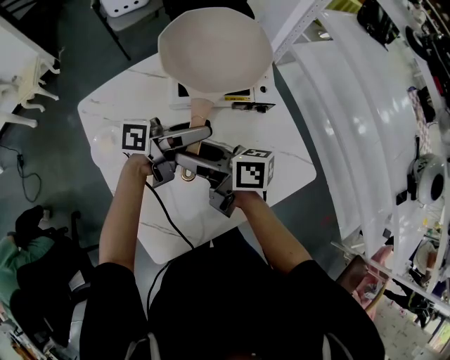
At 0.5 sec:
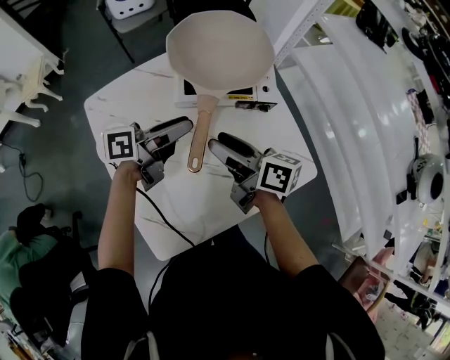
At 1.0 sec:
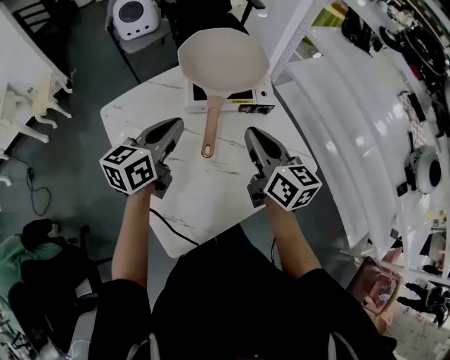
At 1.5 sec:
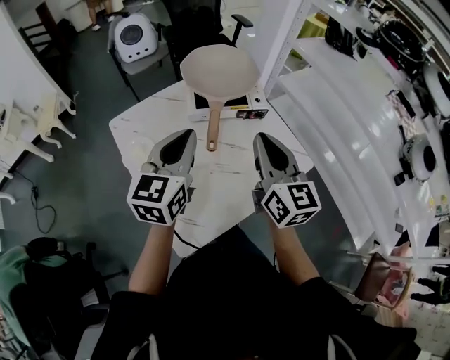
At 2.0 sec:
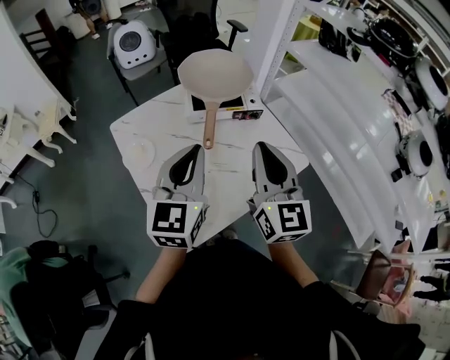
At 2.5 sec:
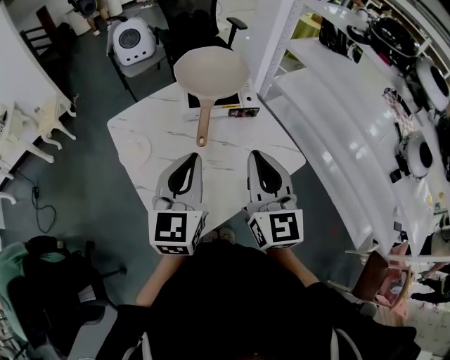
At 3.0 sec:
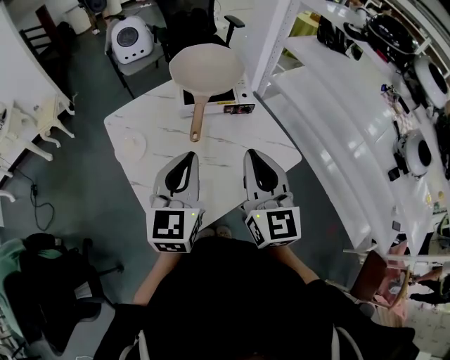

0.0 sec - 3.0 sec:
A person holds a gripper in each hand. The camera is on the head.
0.0 sec - 1.5 sec: The right gripper moves upward, approximately 15 cm, changes its angle by approximately 70 degrees, and closes its fingers. Meanwhile the left gripper shifts by approximately 20 cm, changes its angle by approximately 80 degrees, and closes up.
1.5 sec - 3.0 sec: The right gripper goes about 10 cm backward, while the left gripper goes about 10 cm backward and to the right.

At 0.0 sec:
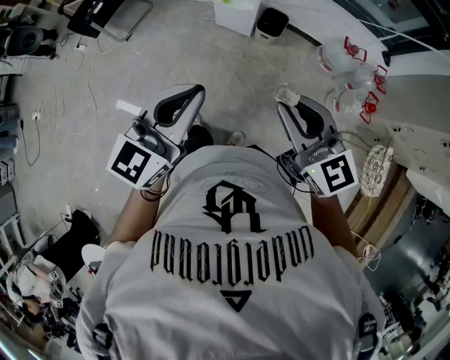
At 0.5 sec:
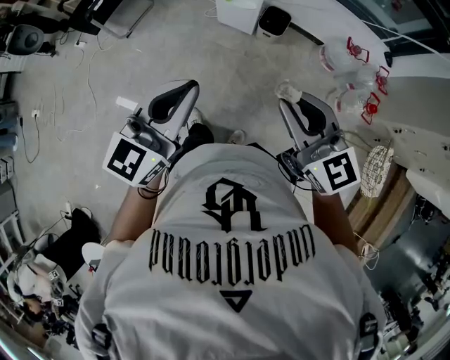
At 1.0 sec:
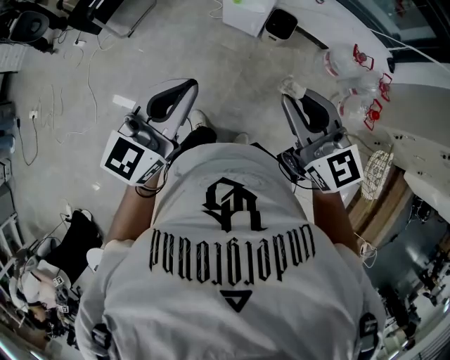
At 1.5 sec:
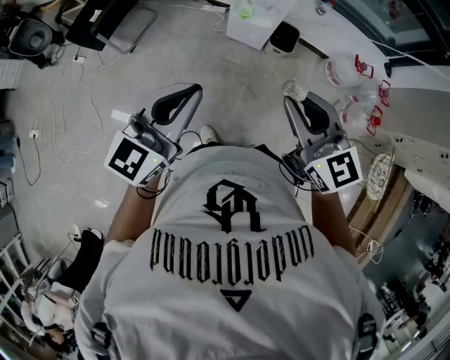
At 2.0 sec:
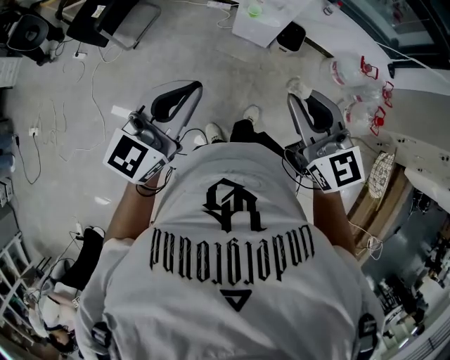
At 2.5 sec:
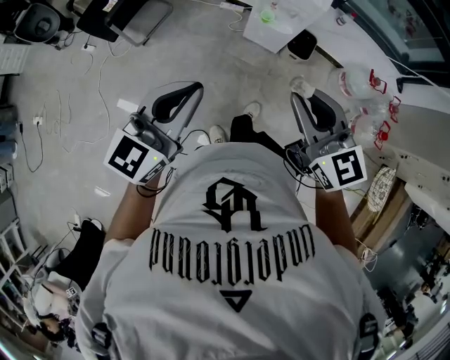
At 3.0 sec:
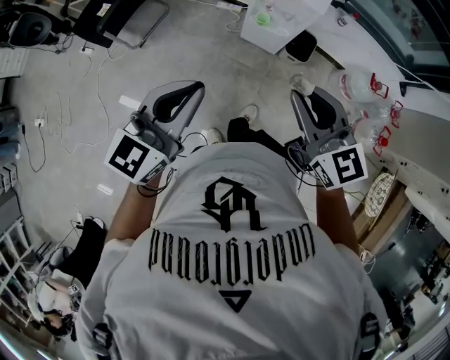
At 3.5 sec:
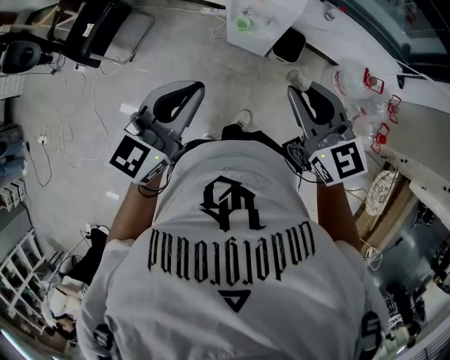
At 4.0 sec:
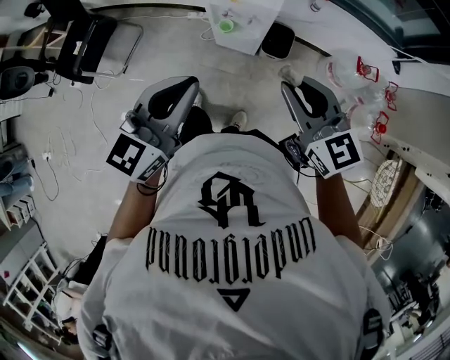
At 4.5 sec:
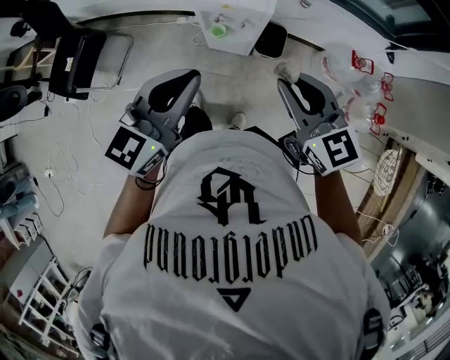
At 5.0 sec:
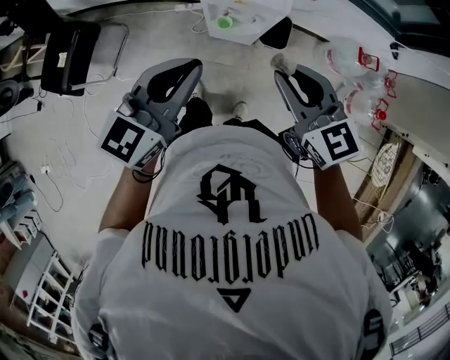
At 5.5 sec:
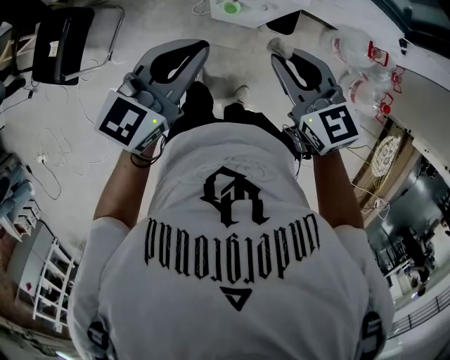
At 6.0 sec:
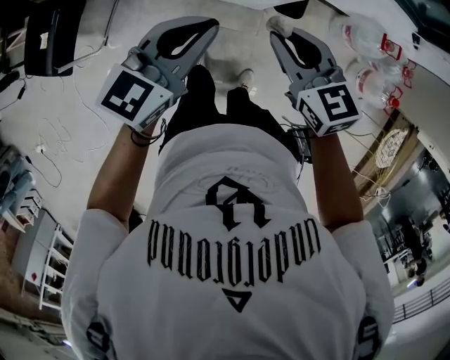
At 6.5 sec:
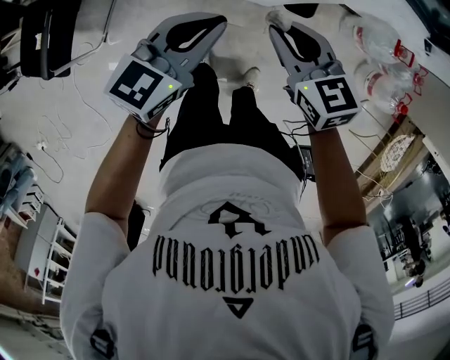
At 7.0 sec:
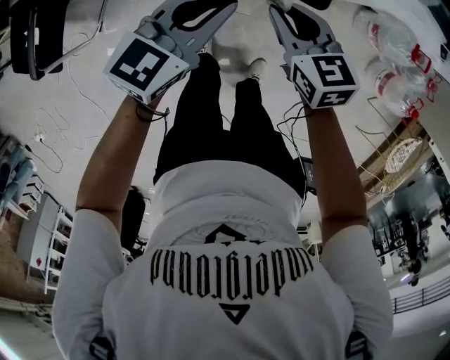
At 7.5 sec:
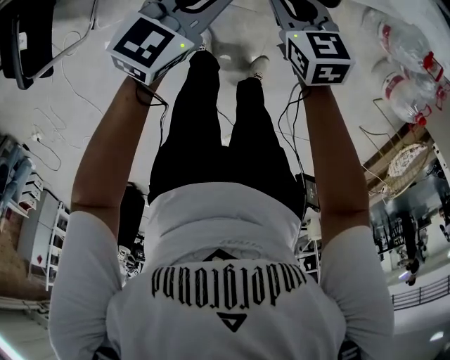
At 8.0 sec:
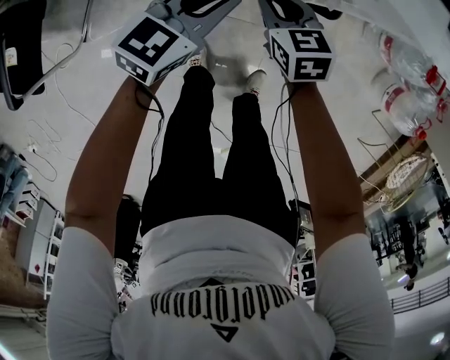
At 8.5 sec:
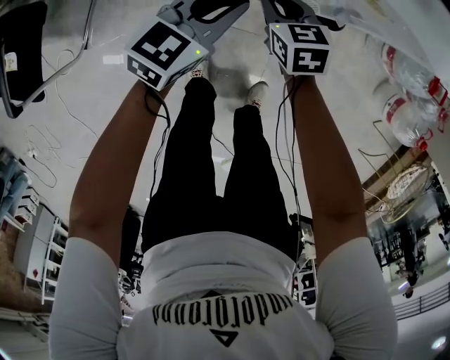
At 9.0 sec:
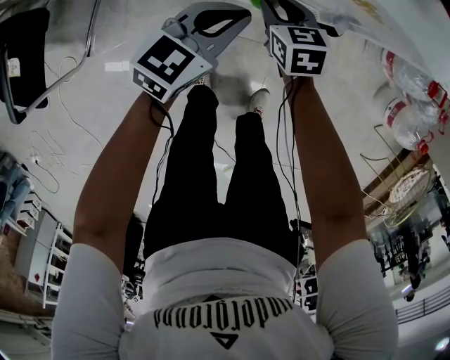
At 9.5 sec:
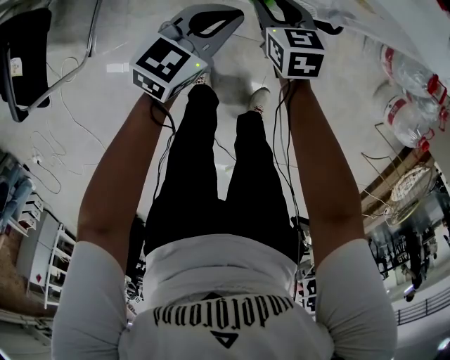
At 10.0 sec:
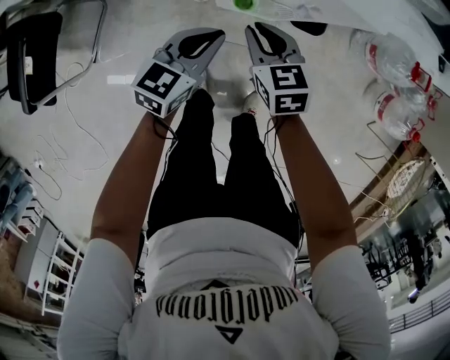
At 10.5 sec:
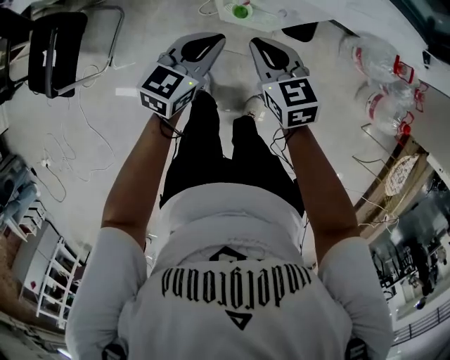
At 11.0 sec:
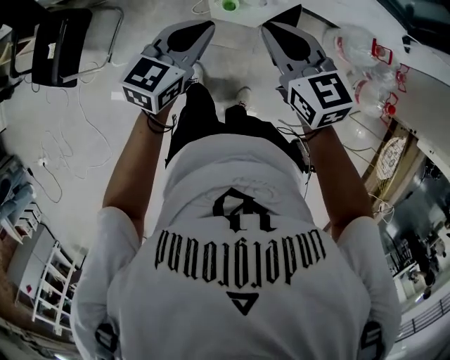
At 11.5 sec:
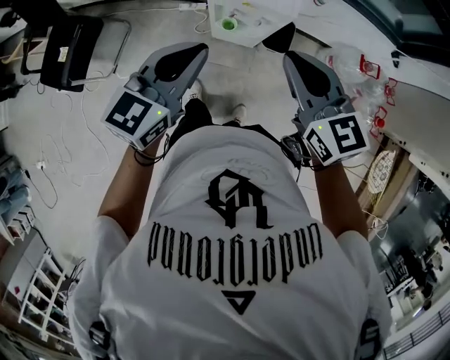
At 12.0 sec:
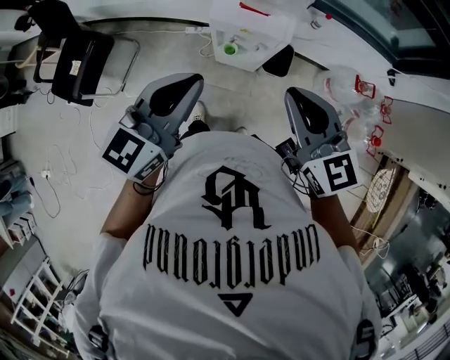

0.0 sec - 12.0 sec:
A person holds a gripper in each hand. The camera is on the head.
0.0 sec - 2.0 sec: Both grippers travel together to the left and forward, approximately 25 cm.
2.0 sec - 4.0 sec: The grippers both shift forward and to the right by roughly 25 cm.
4.0 sec - 6.0 sec: The grippers both shift forward, downward and to the left by about 25 cm.
6.0 sec - 8.0 sec: Both grippers move downward, approximately 35 cm.
8.0 sec - 10.0 sec: The right gripper is displaced upward by about 5 cm.
10.0 sec - 12.0 sec: The grippers both shift upward by about 50 cm. The right gripper changes its angle by some 30 degrees, while the left gripper changes its angle by some 20 degrees.

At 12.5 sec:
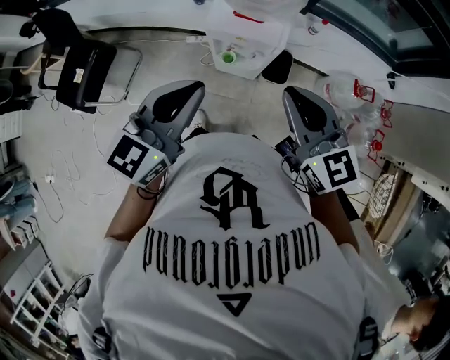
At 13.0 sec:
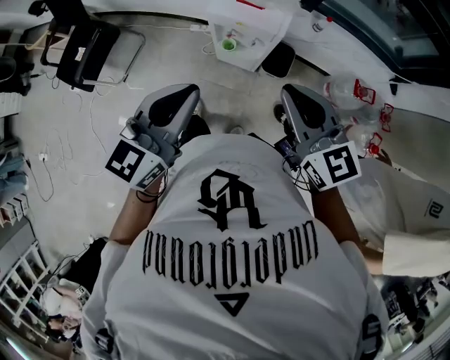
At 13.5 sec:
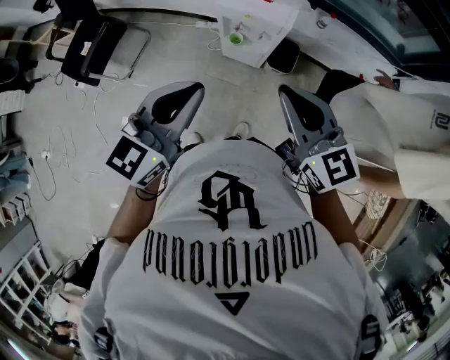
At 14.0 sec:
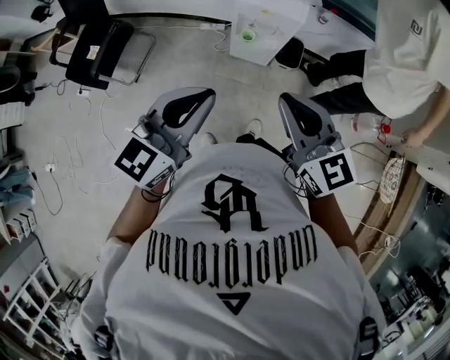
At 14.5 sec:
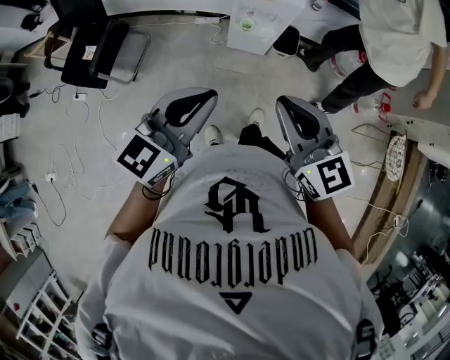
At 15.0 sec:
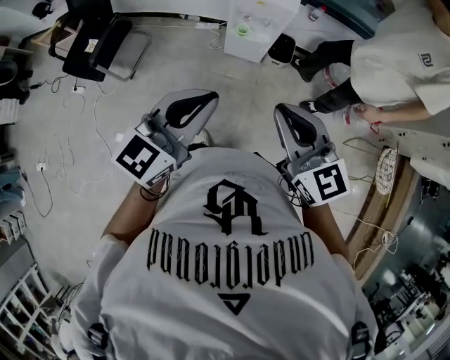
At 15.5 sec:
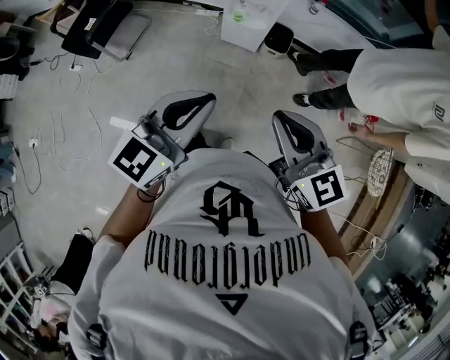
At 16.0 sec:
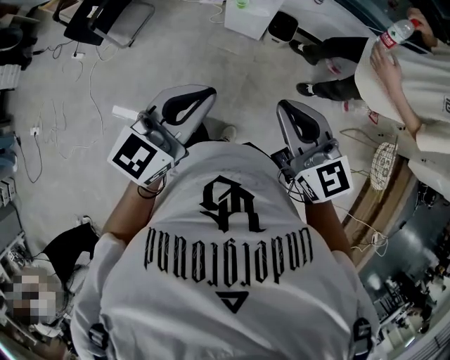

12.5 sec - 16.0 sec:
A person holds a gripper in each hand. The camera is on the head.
12.5 sec - 14.5 sec: Both grippers move backward and to the left, approximately 30 cm.
14.5 sec - 16.0 sec: The right gripper heads to the right and backward, covering approximately 20 cm; the left gripper moves backward and to the right, about 20 cm.

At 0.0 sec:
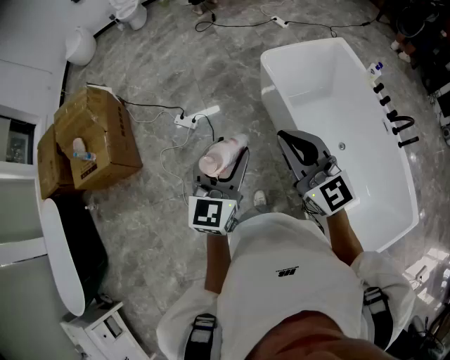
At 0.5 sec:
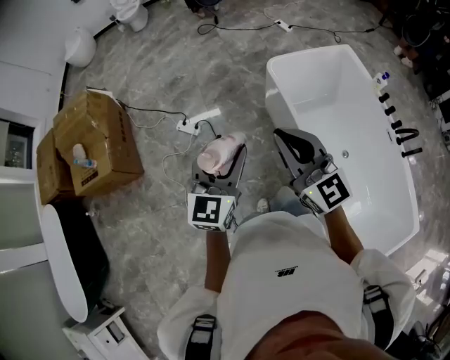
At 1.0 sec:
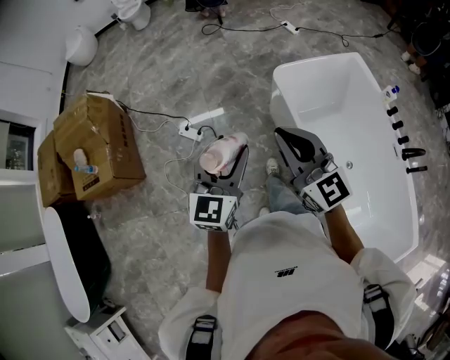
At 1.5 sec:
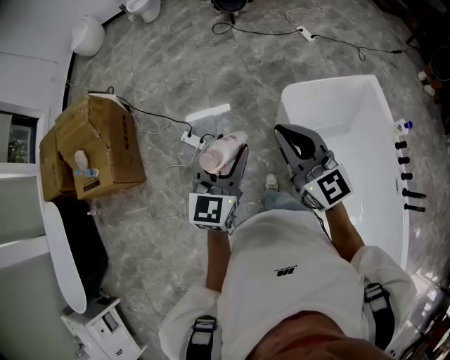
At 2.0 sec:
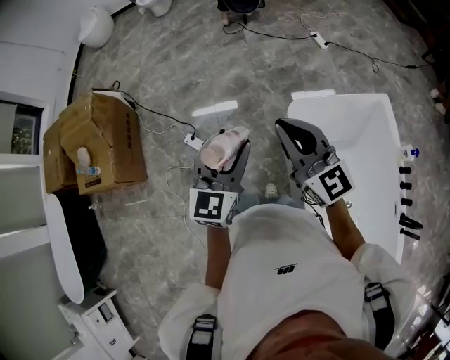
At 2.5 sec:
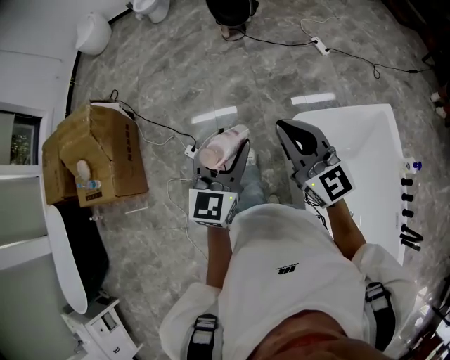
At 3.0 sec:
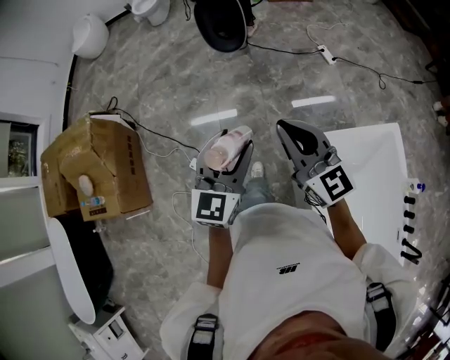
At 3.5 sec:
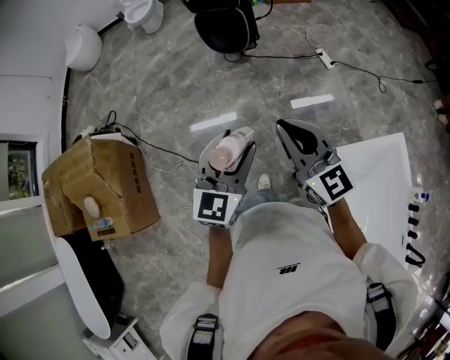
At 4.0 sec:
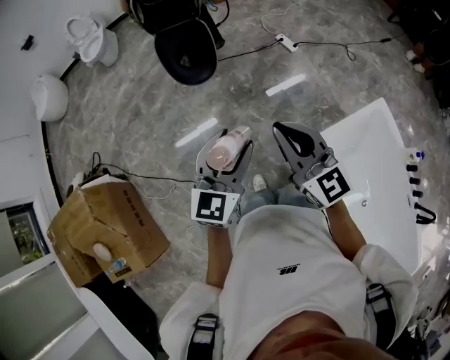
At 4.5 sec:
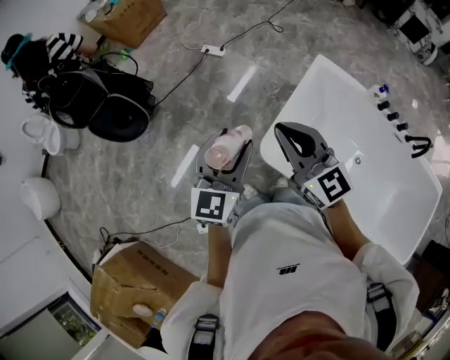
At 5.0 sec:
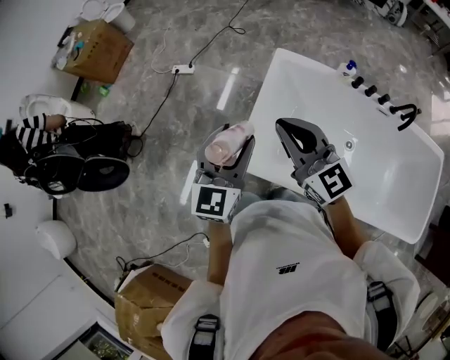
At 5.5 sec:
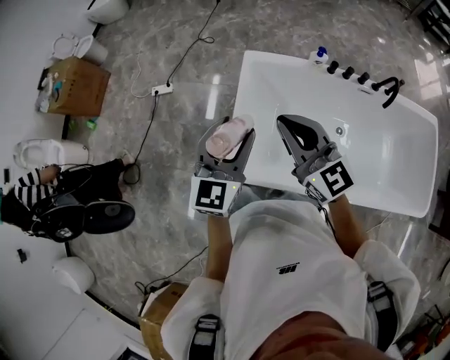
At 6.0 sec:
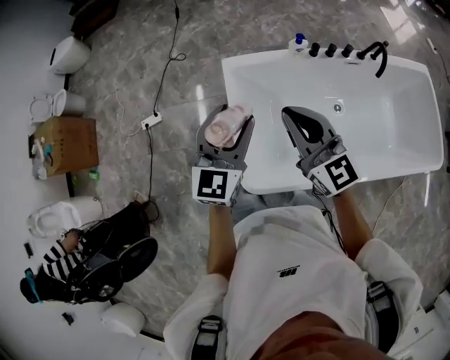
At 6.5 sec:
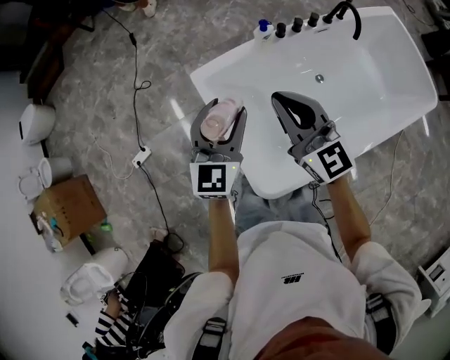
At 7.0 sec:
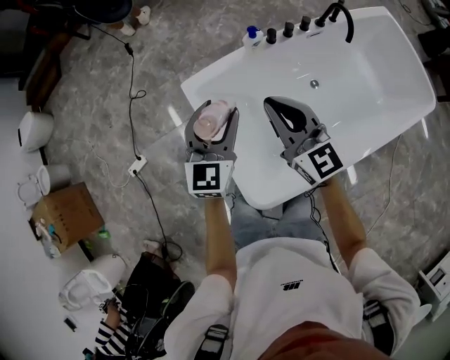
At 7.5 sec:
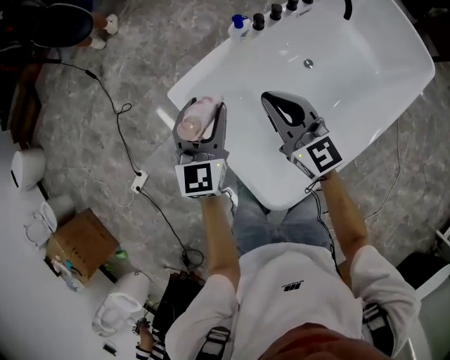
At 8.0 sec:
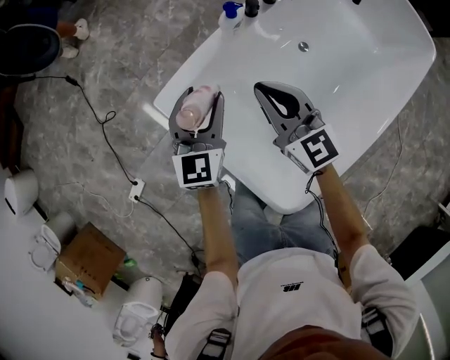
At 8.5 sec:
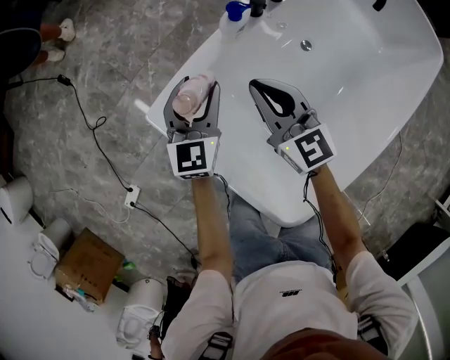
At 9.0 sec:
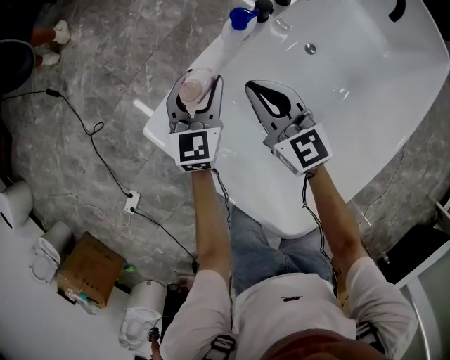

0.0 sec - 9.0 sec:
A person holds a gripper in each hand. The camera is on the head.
0.0 sec - 2.0 sec: The pair of grippers is taken forward, some 50 cm.
2.0 sec - 4.5 sec: The right gripper moves approximately 35 cm, and turns by roughly 40 degrees. The left gripper ends up roughly 40 cm from where it was, and rotates some 50 degrees.
4.5 sec - 7.0 sec: The pair of grippers is taken about 50 cm. The right gripper changes its angle by roughly 60 degrees. Meanwhile the left gripper rotates about 60 degrees.
7.0 sec - 9.0 sec: Both grippers move downward and forward, approximately 40 cm. The right gripper swivels approximately 20 degrees.
